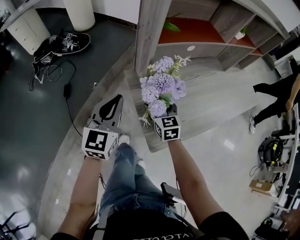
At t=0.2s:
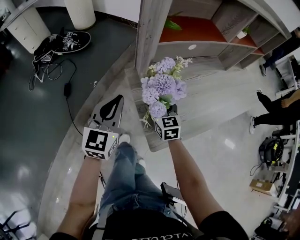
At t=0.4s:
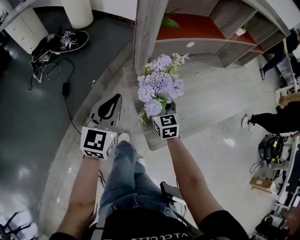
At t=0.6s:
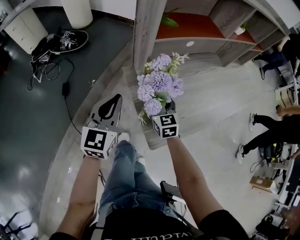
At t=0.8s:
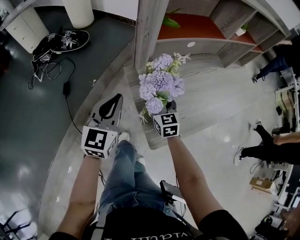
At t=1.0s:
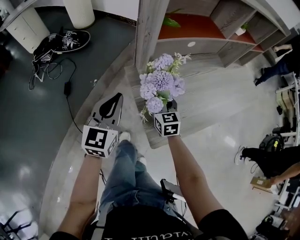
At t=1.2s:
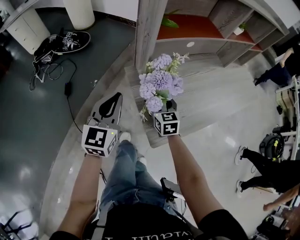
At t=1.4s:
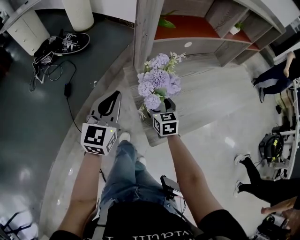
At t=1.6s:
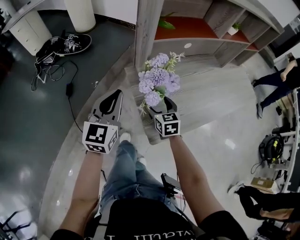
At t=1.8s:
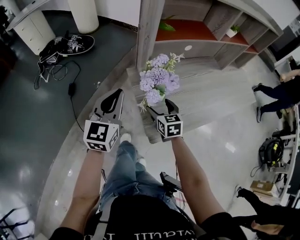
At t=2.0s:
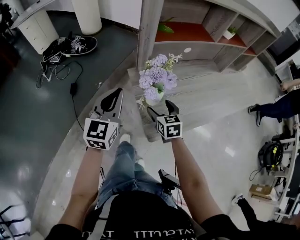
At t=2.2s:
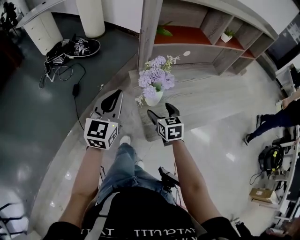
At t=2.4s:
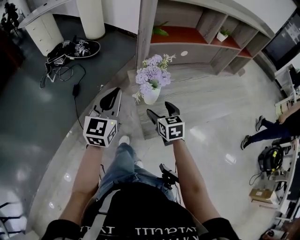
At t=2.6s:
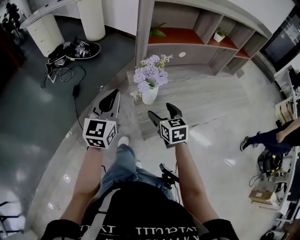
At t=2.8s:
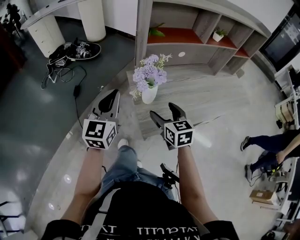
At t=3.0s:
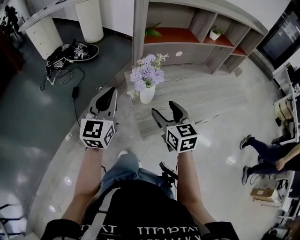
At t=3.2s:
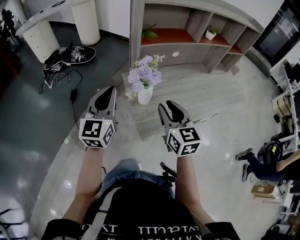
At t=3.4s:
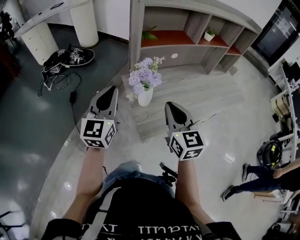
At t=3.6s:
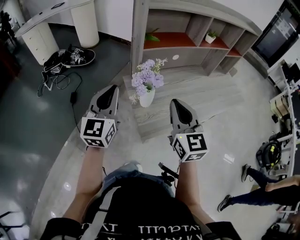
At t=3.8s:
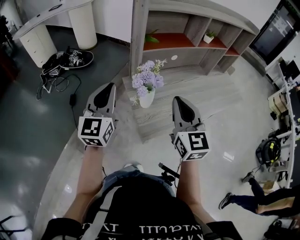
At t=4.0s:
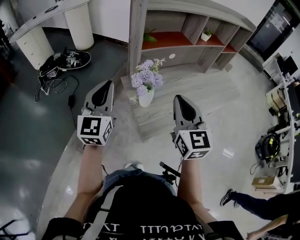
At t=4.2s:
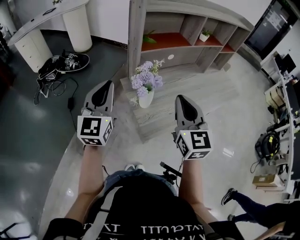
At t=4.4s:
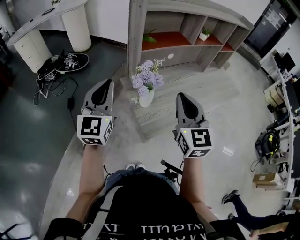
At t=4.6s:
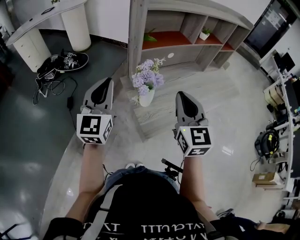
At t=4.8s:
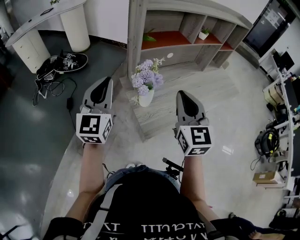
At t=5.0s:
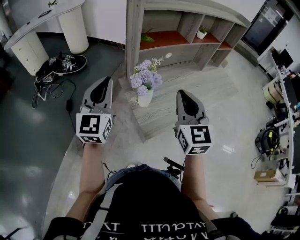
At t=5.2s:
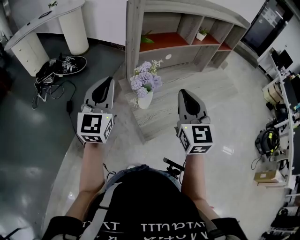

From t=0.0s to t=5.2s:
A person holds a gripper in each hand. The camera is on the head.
From t=0.0s to t=1.8s: There are only small adjustments of the grippers.
From t=1.8s to t=3.4s: The right gripper goes about 25 cm upward and backward, rotates some 20 degrees, and closes. Meanwhile the left gripper moves upward and backward, roughly 10 cm.
From t=3.4s to t=5.2s: Both grippers move upward, some 5 cm.

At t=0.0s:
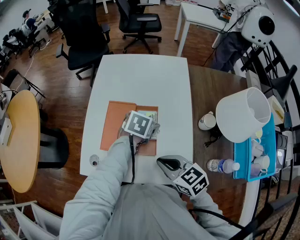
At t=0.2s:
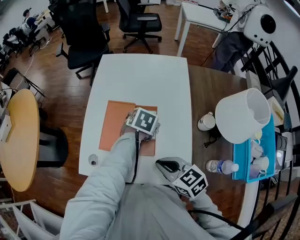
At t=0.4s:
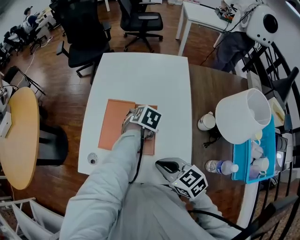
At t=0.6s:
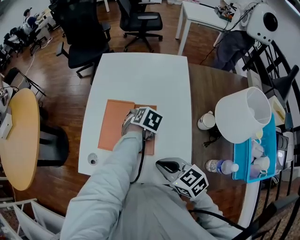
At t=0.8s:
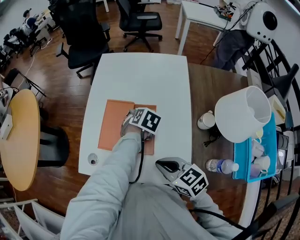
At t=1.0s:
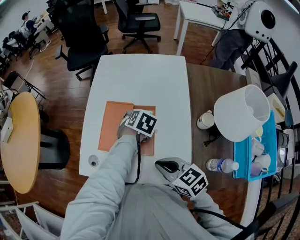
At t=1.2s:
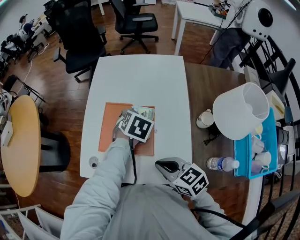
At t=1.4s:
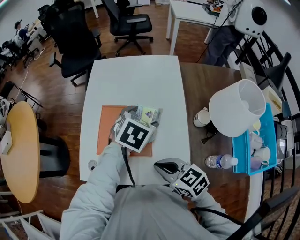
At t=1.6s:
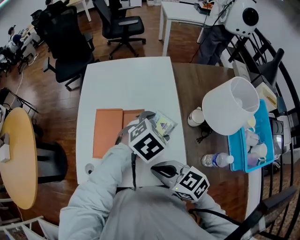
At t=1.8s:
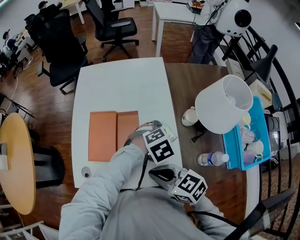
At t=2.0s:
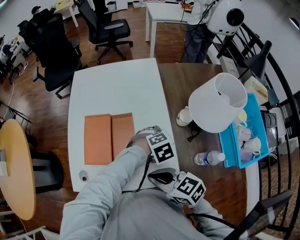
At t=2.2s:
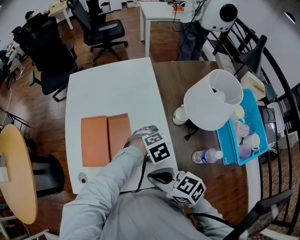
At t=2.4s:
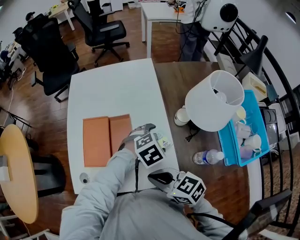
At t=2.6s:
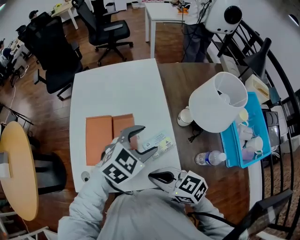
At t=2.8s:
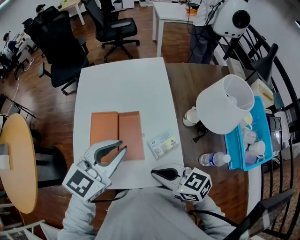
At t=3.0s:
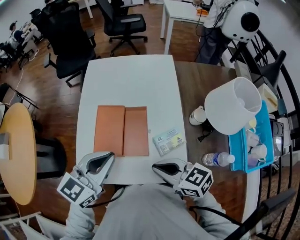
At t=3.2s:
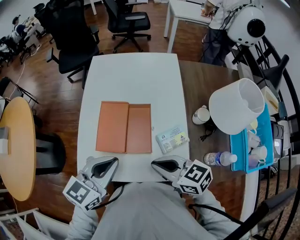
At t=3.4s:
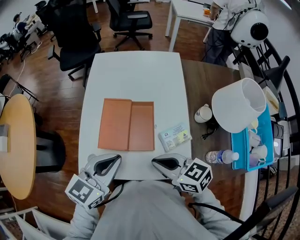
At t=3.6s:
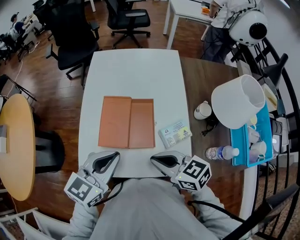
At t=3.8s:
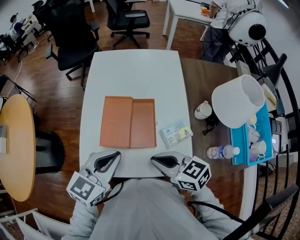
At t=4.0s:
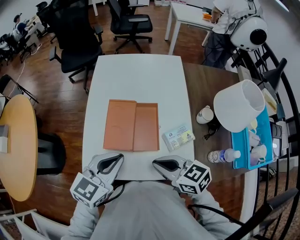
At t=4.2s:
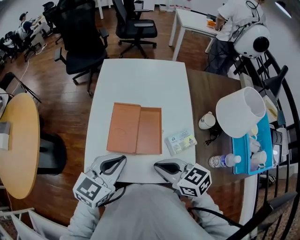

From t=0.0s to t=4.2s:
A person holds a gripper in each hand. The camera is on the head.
From t=0.0s to t=1.4s: The left gripper shifts roughly 10 cm upward.
From t=1.4s to t=2.8s: The left gripper moves approximately 15 cm, points its fingers approximately 30 degrees further upward, and closes its fingers.
From t=2.8s to t=4.2s: The left gripper travels to the left, backward and downward by some 15 cm. Meanwhile the right gripper goes approximately 10 cm to the left.

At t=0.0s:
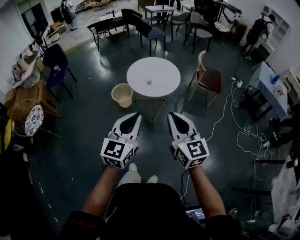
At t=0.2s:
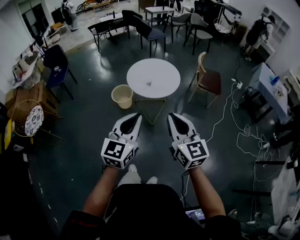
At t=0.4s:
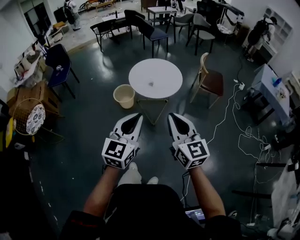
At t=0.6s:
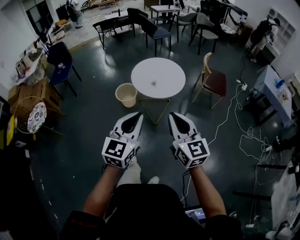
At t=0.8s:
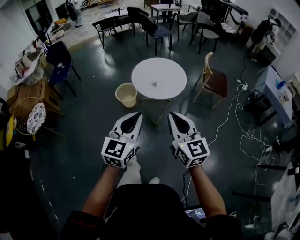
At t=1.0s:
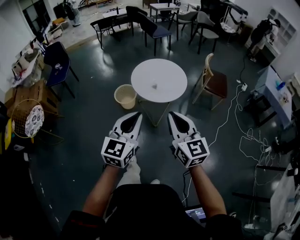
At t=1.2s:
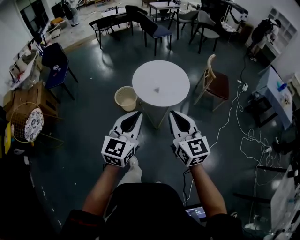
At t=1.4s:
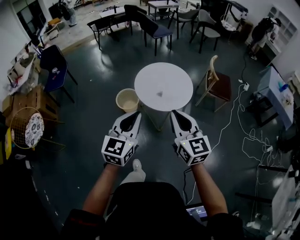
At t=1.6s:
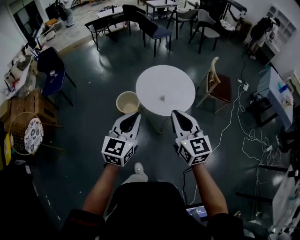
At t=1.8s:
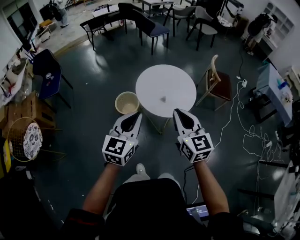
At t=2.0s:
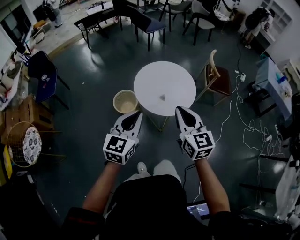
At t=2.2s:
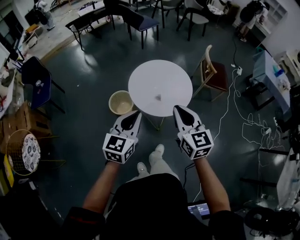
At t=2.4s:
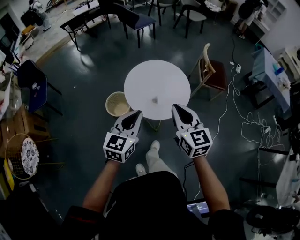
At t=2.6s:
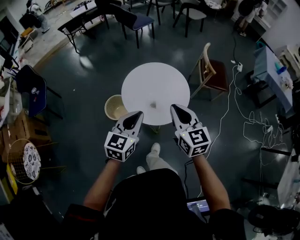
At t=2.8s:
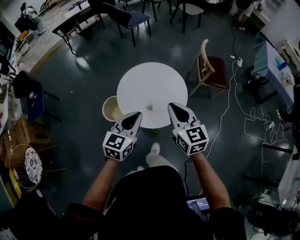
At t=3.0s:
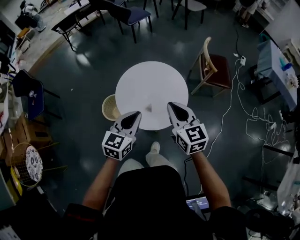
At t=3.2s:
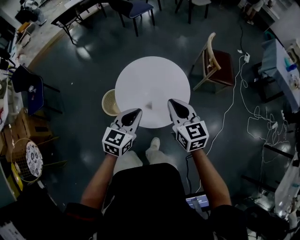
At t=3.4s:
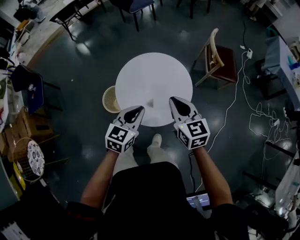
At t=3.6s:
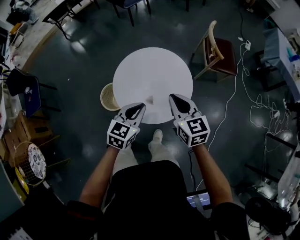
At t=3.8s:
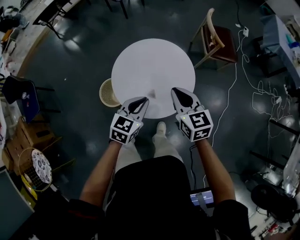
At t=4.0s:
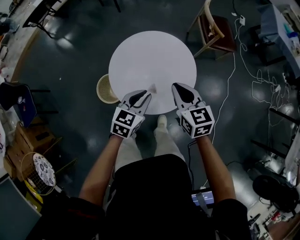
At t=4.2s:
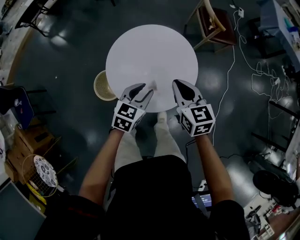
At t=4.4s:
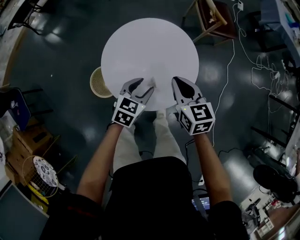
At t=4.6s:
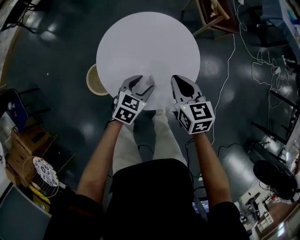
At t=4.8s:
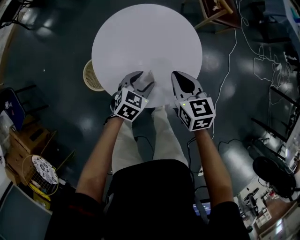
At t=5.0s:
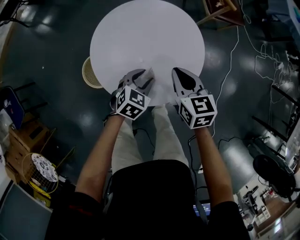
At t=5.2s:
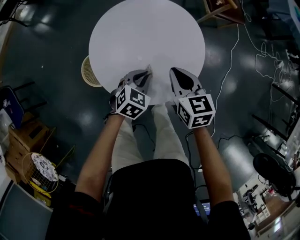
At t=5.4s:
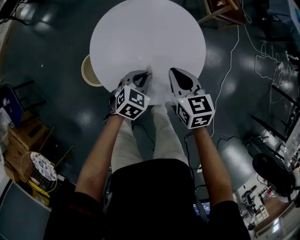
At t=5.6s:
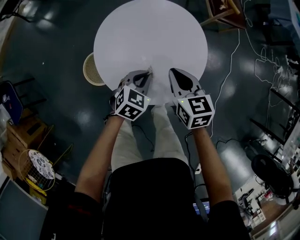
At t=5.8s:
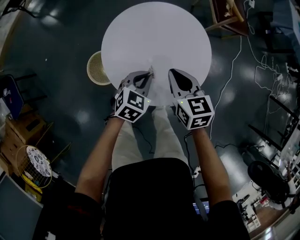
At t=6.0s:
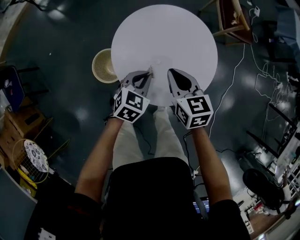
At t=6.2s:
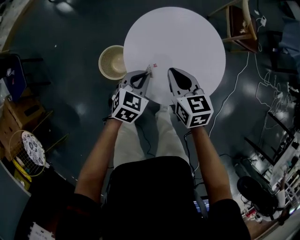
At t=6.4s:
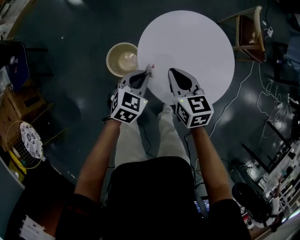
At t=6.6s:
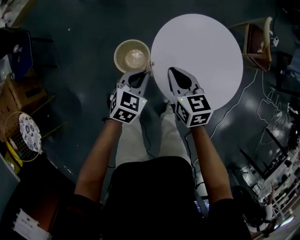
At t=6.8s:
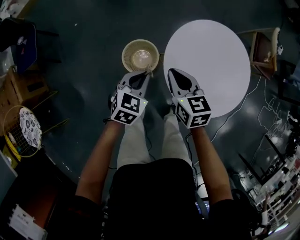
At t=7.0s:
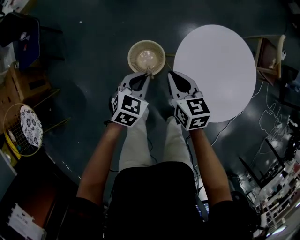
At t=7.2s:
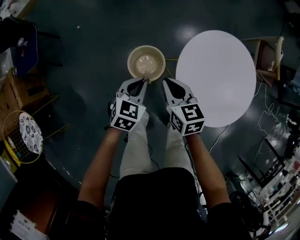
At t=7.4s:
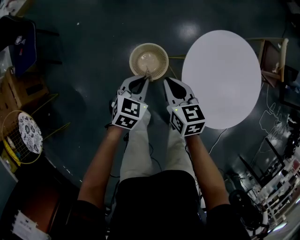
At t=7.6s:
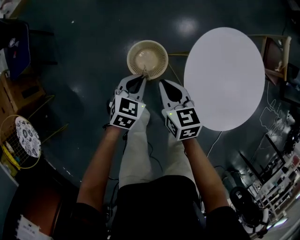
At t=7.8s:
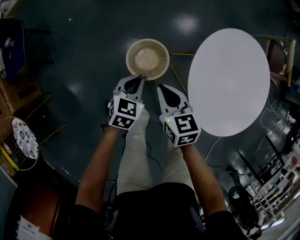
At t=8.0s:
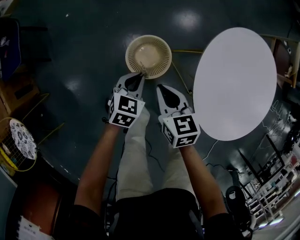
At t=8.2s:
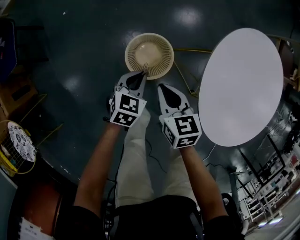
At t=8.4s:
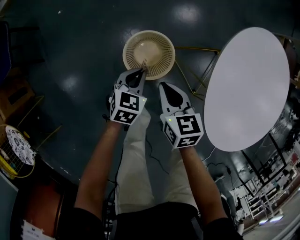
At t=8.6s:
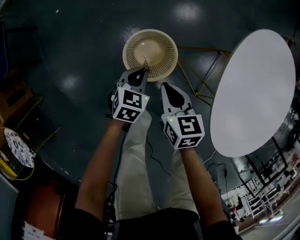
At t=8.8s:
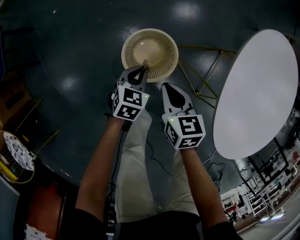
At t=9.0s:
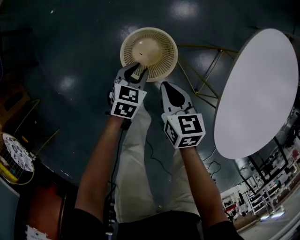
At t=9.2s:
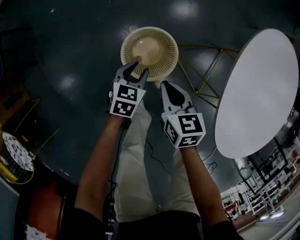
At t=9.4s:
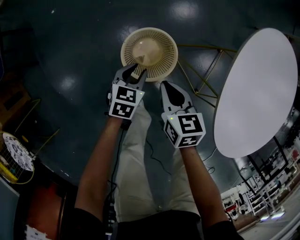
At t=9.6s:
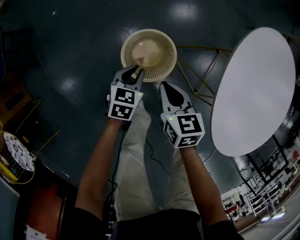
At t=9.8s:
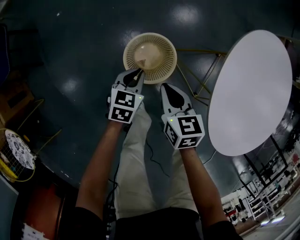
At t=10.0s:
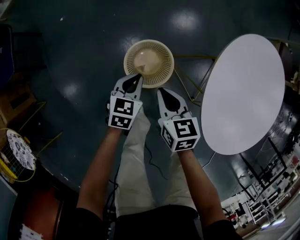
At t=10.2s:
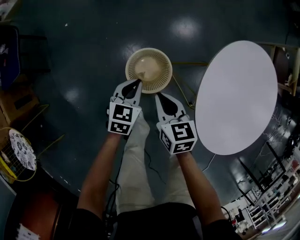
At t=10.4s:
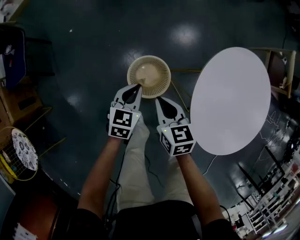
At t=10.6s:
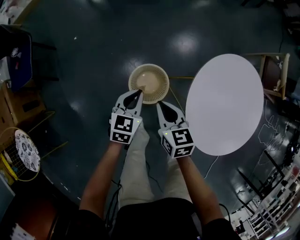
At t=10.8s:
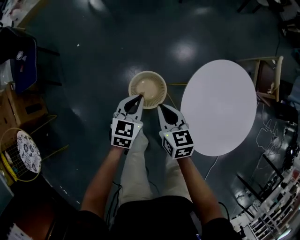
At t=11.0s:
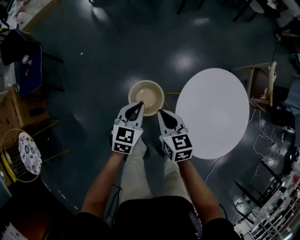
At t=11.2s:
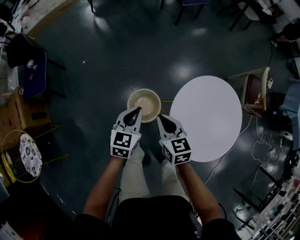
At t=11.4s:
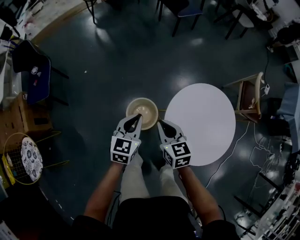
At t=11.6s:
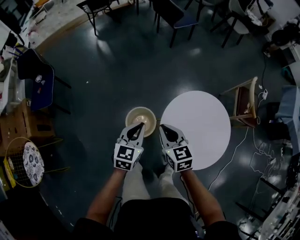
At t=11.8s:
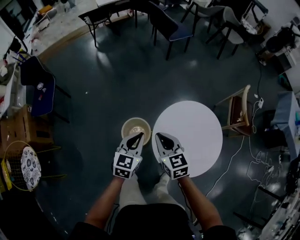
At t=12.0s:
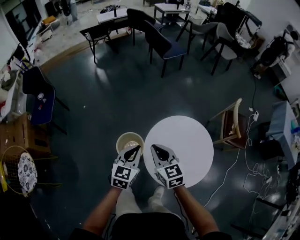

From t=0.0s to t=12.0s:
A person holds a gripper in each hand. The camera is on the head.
From t=0.0s to t=1.6s: Both grippers travel together forward and to the left, roughly 30 cm.
From t=1.6s to t=3.0s: The two grippers go about 35 cm forward and downward.
From t=3.0s to t=4.4s: Both grippers travel together downward and forward, approximately 25 cm. The left gripper rotates approximately 30 degrees, and opens its fingers. The right gripper turns by about 20 degrees.
From t=4.4s to t=6.0s: The right gripper travels to the left and downward by some 10 cm, while the left gripper goes about 5 cm to the left, and closes up.
From t=6.0s to t=7.6s: Both grippers move to the left, about 40 cm. The left gripper swivels about 20 degrees.
From t=7.6s to t=9.0s: The grippers both shift downward by roughly 25 cm. The left gripper opens its fingers.
From t=9.0s to t=10.4s: The grippers both shift upward by some 20 cm. The left gripper closes its fingers.
From t=10.4s to t=12.0s: The grippers both shift upward and to the right by roughly 40 cm. The right gripper changes its angle by some 20 degrees.

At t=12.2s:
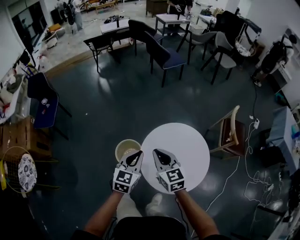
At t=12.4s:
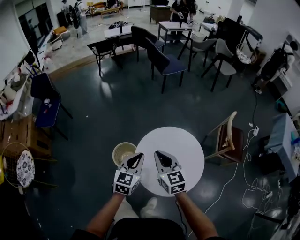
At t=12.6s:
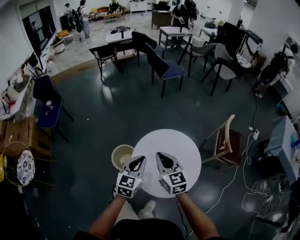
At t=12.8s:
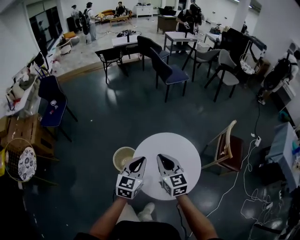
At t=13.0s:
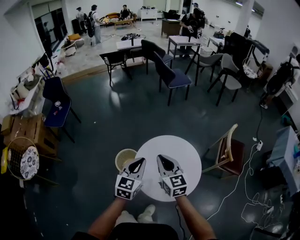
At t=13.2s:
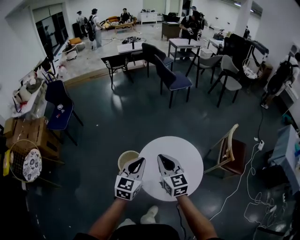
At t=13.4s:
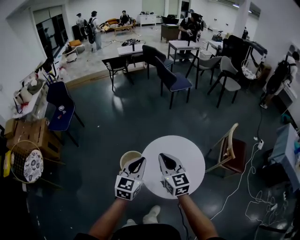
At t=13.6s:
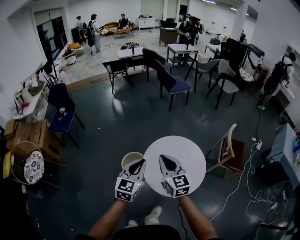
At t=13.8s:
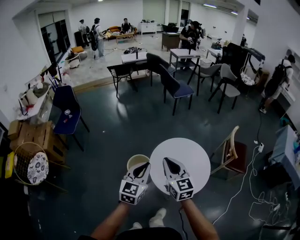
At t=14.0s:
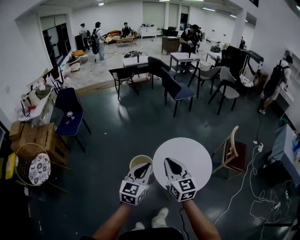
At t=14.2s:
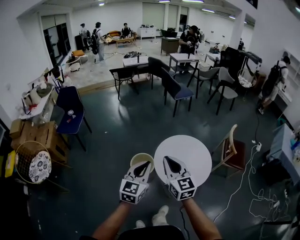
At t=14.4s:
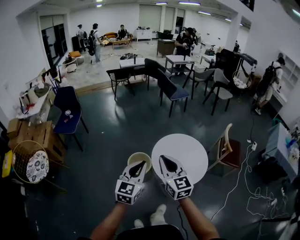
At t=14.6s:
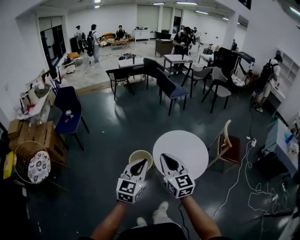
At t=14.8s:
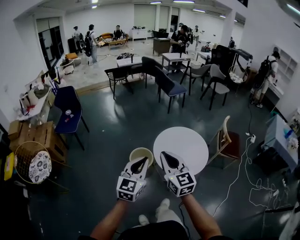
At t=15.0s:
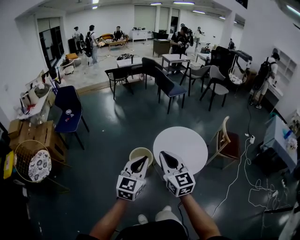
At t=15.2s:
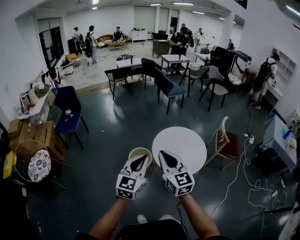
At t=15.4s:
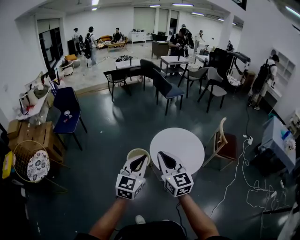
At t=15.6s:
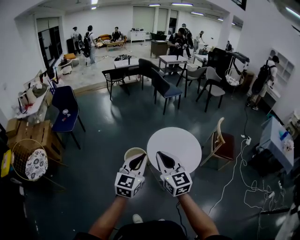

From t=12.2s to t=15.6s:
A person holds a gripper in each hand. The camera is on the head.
From t=12.2s to t=13.8s: Both grippers travel together backward and upward, some 25 cm.
From t=13.8s to t=15.6s: The right gripper moves backward, approximately 25 cm. Meanwhile the left gripper moves backward and upward, about 20 cm.
